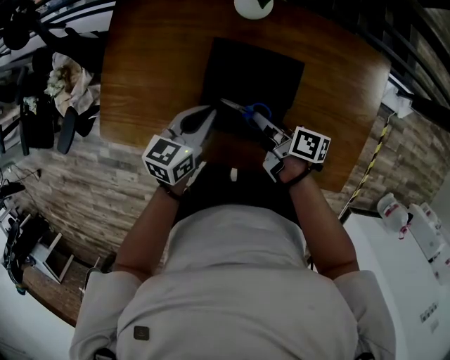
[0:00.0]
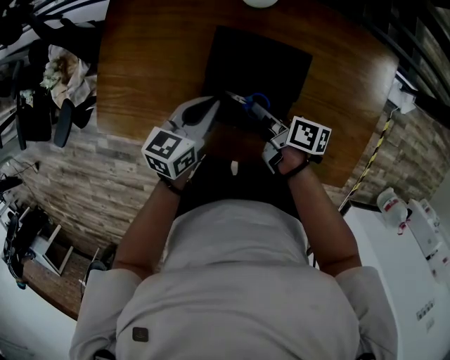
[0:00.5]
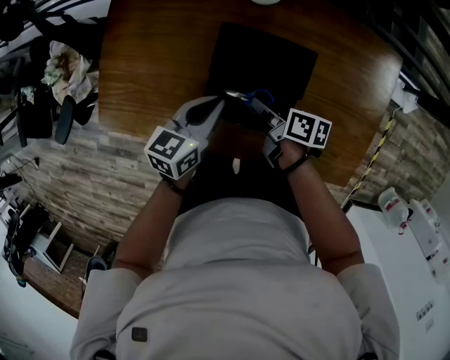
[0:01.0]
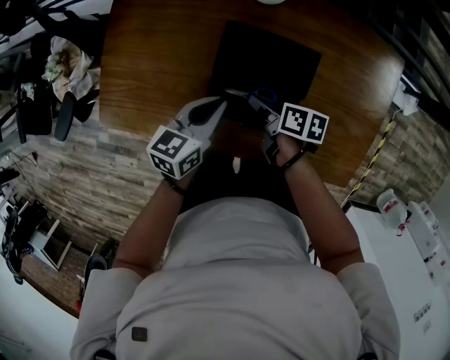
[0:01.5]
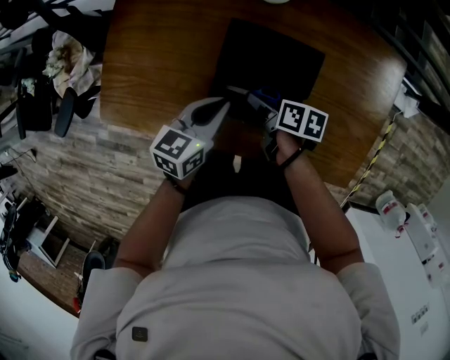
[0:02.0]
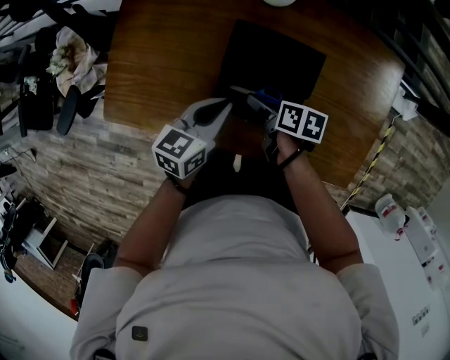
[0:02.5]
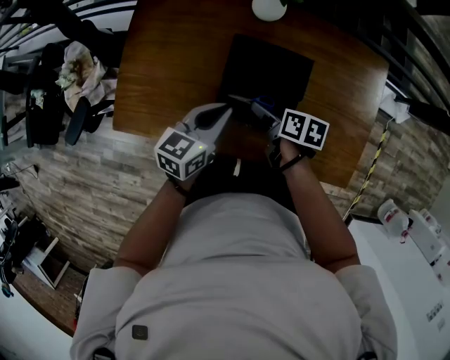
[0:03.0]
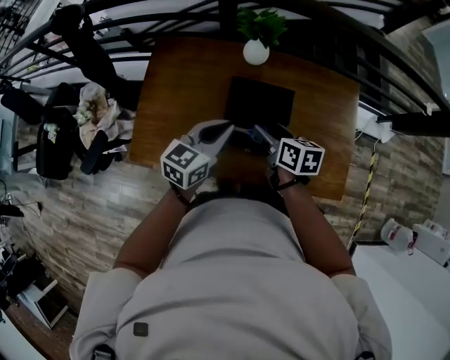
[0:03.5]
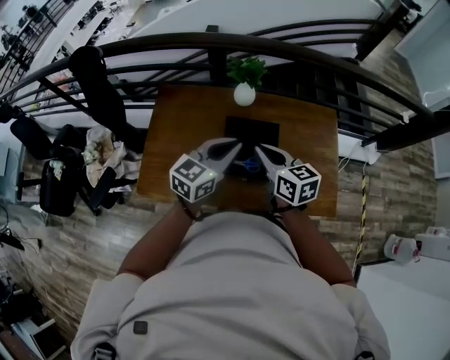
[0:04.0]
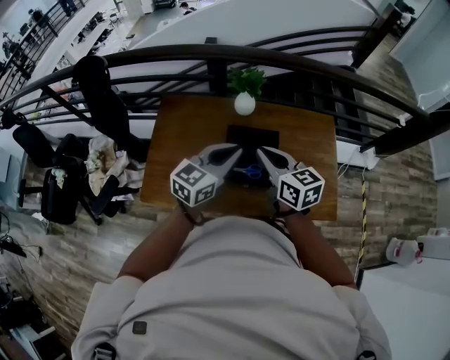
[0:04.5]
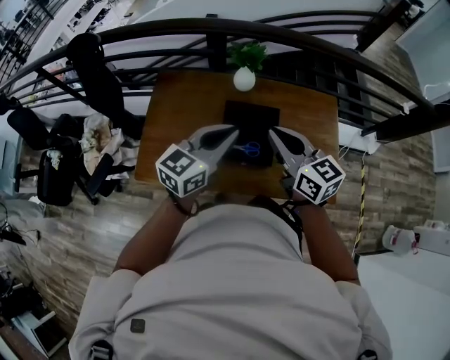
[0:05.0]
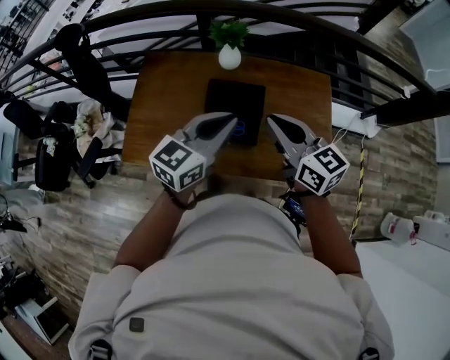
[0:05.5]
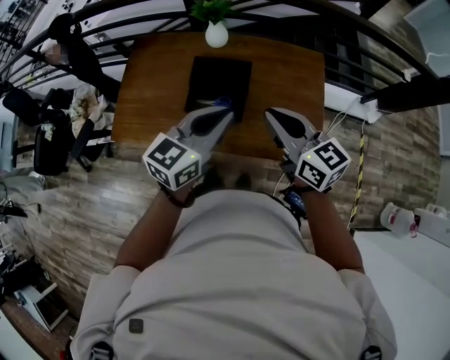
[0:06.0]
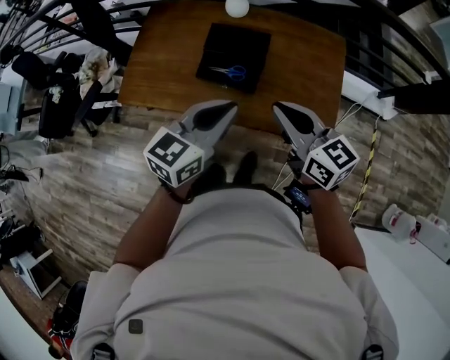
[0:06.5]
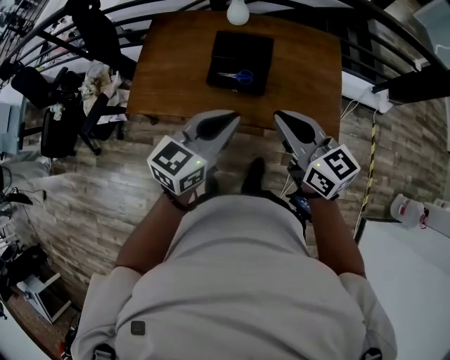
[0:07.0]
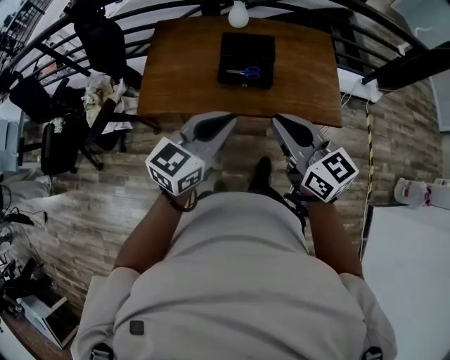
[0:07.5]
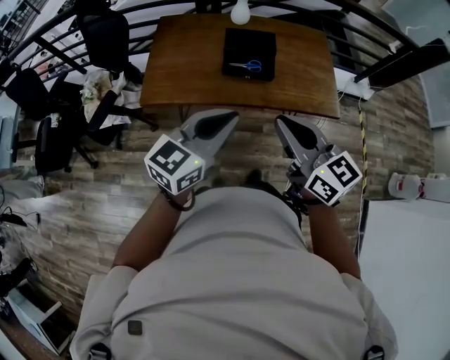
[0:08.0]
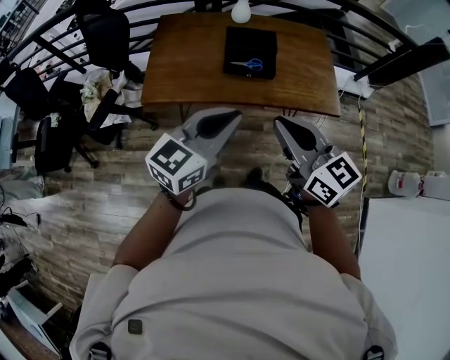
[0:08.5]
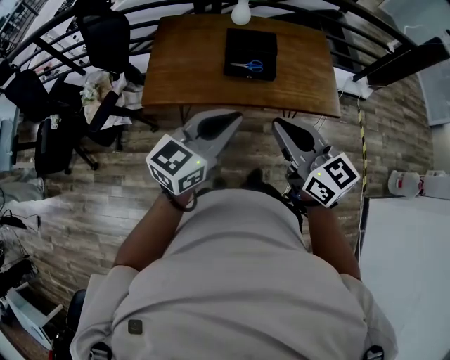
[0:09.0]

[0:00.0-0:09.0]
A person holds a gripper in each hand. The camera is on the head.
0:00.0 to 0:02.0: The right gripper is displaced downward by roughly 5 cm, turns by roughly 20 degrees, and opens up.
0:02.0 to 0:04.5: The two grippers go some 35 cm upward. The right gripper rotates approximately 60 degrees, and closes its fingers; the left gripper turns by about 30 degrees.
0:04.5 to 0:07.0: The grippers both shift backward and to the right by roughly 25 cm.
0:07.0 to 0:09.0: Both grippers travel together backward and to the left, about 25 cm.

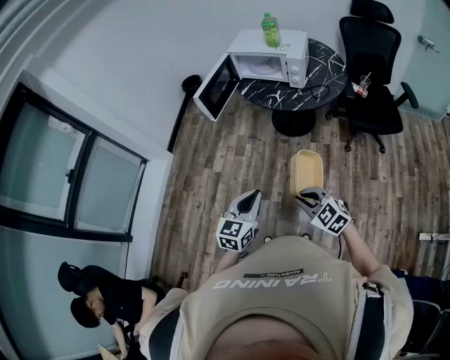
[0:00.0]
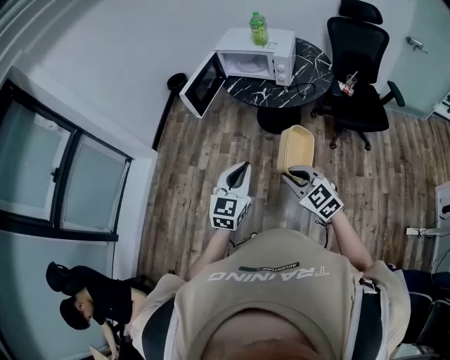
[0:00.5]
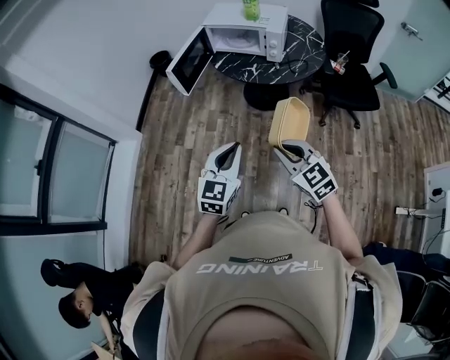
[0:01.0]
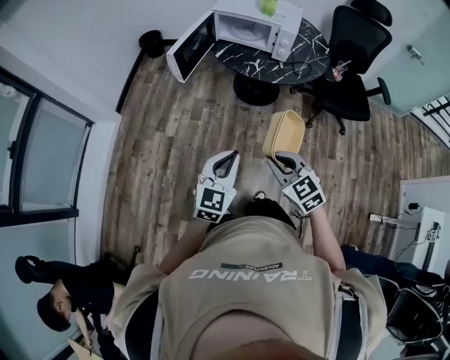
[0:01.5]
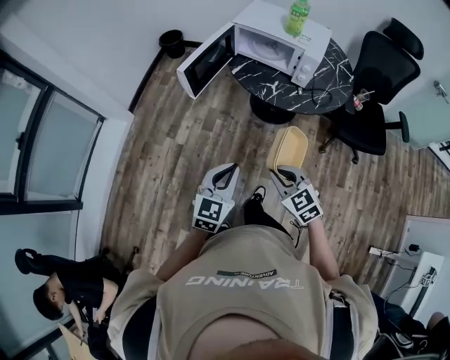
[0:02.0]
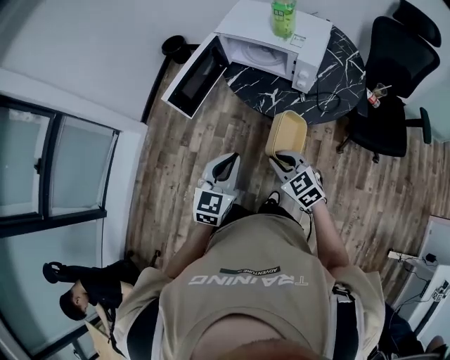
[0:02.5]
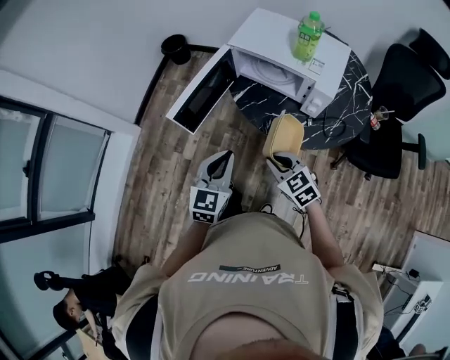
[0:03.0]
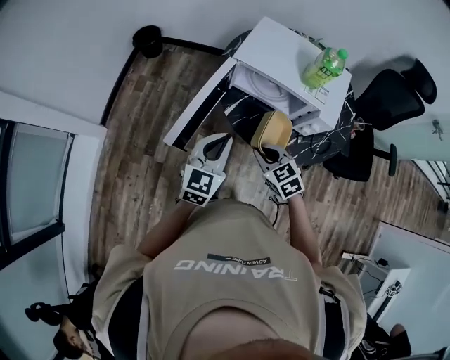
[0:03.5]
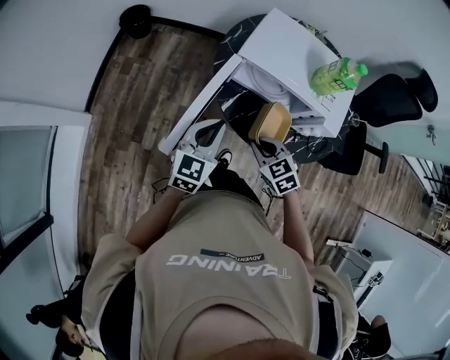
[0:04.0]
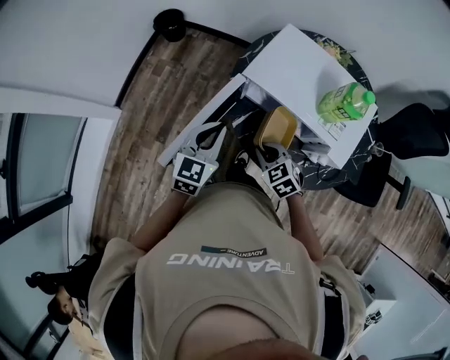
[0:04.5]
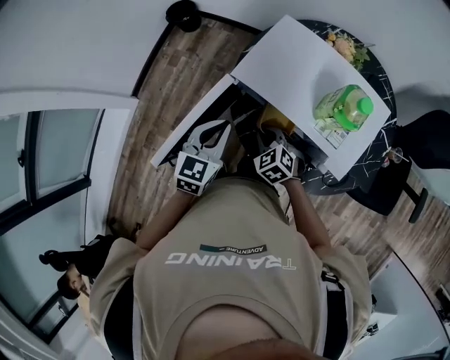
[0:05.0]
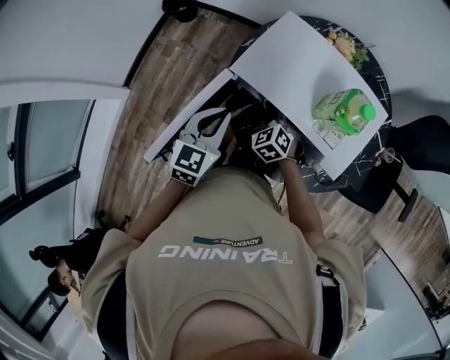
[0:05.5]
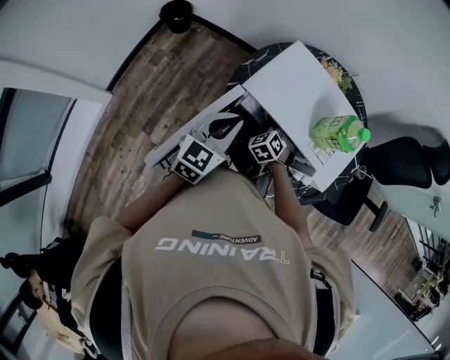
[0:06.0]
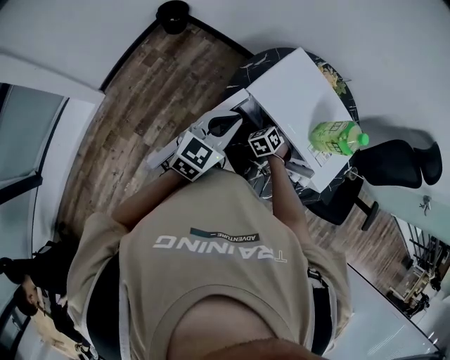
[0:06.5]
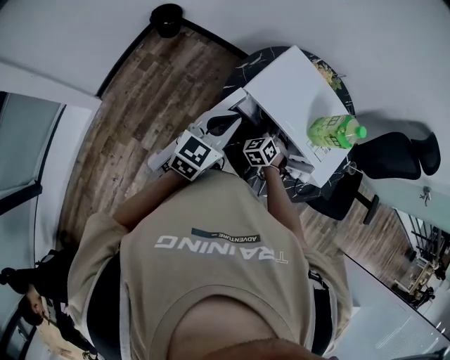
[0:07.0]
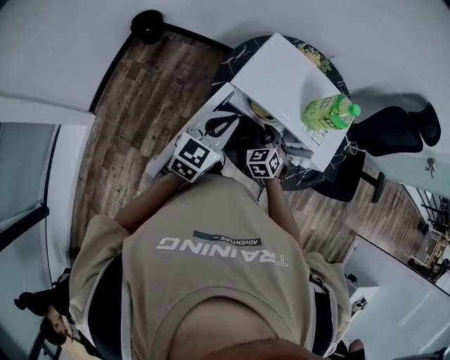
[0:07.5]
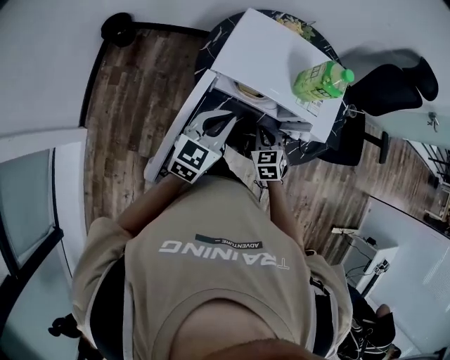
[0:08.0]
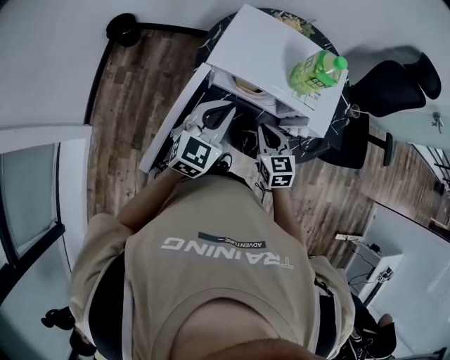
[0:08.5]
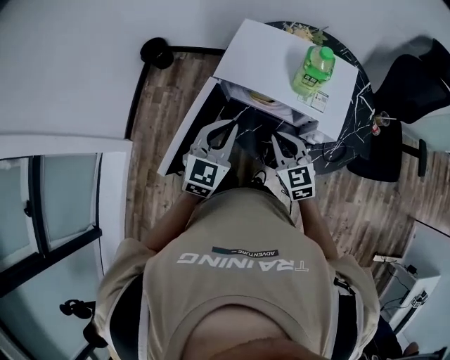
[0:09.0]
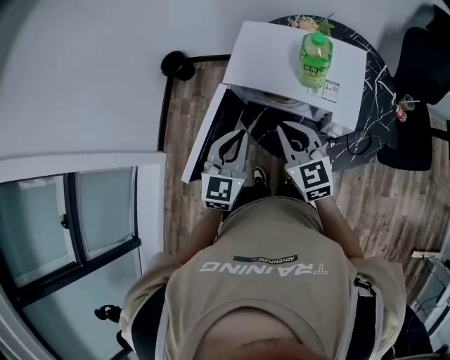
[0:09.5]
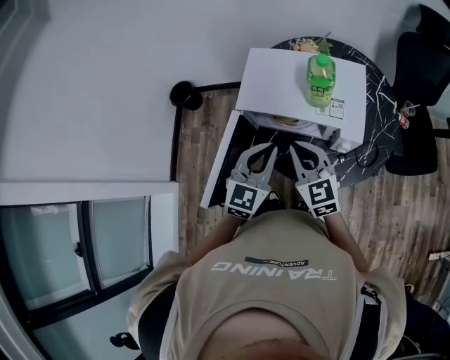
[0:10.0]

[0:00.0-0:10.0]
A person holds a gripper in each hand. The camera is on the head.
0:00.0 to 0:02.0: Both grippers move forward, approximately 15 cm.
0:02.0 to 0:04.0: The pair of grippers is taken forward, approximately 50 cm.
0:04.0 to 0:06.0: The right gripper is displaced forward and downward by about 20 cm, and rotates approximately 30 degrees, while the left gripper travels forward and to the right by approximately 10 cm.
0:06.0 to 0:08.0: The right gripper travels backward and to the right by about 15 cm, and changes its angle by some 30 degrees.
0:08.0 to 0:10.0: The right gripper goes about 20 cm upward, and tilts its fingers roughly 30 degrees upward. Meanwhile the left gripper travels to the right and upward by some 10 cm.

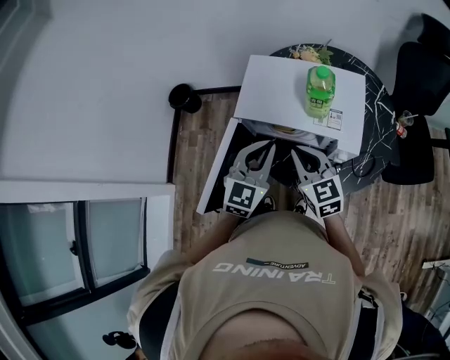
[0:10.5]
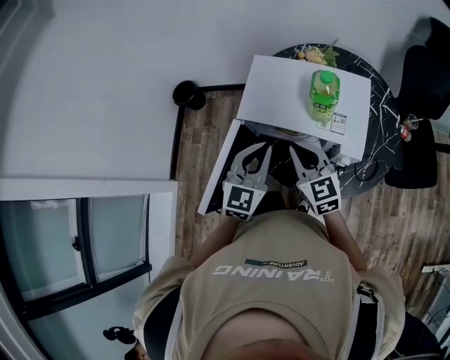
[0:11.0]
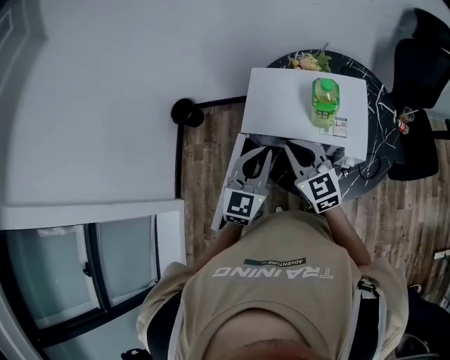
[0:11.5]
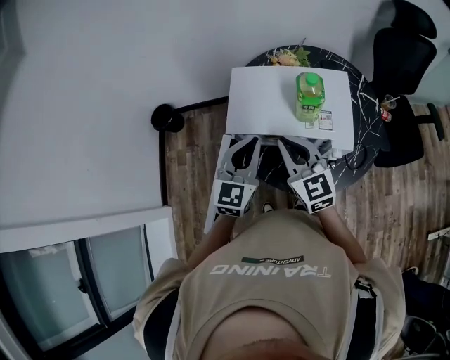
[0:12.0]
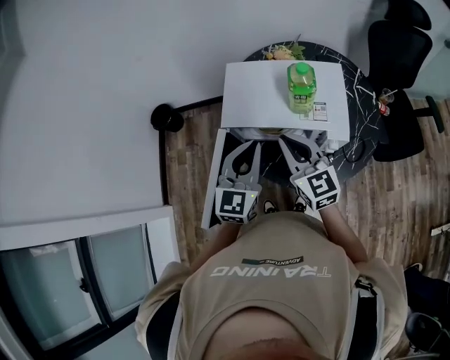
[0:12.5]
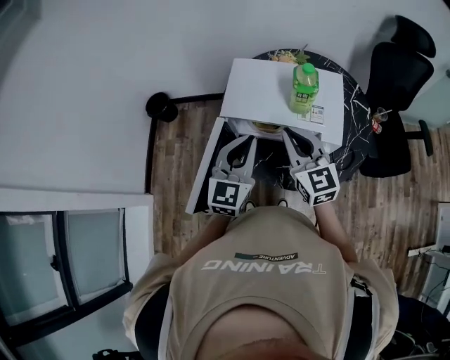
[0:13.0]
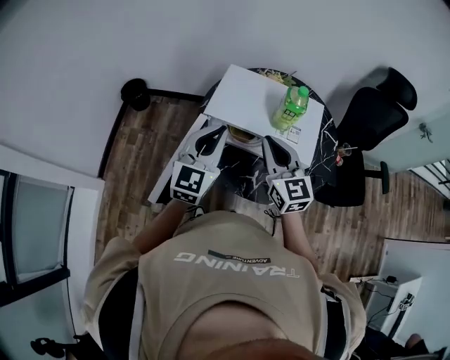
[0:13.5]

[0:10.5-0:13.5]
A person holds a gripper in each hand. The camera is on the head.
0:10.5 to 0:12.0: The left gripper shifts by roughly 5 cm, while the right gripper heads upward, covering about 5 cm.
0:12.0 to 0:13.5: The left gripper moves roughly 5 cm. Meanwhile the right gripper moves some 5 cm.

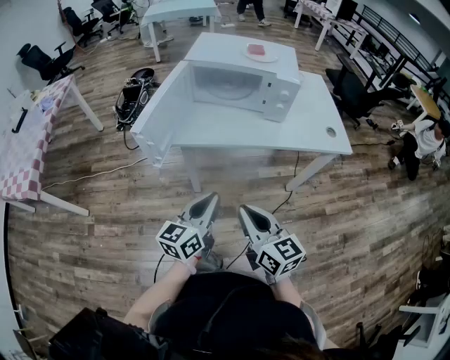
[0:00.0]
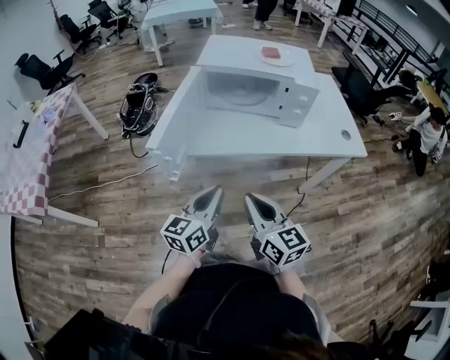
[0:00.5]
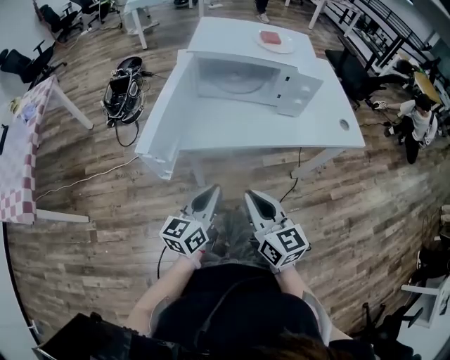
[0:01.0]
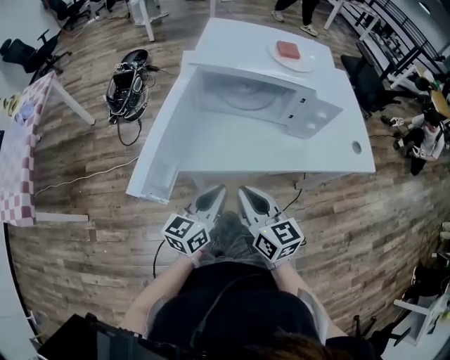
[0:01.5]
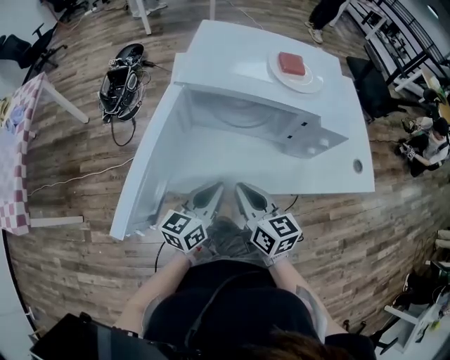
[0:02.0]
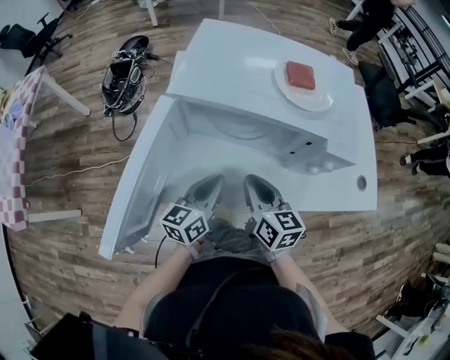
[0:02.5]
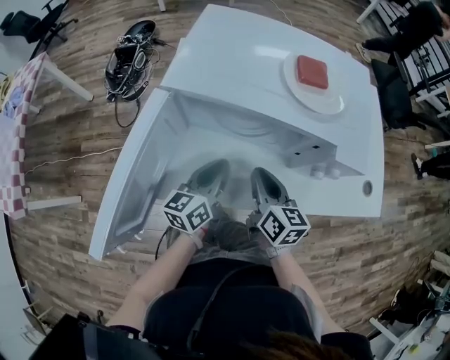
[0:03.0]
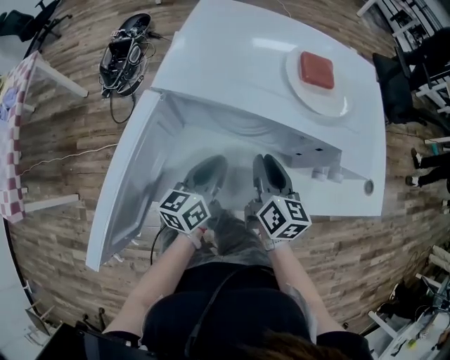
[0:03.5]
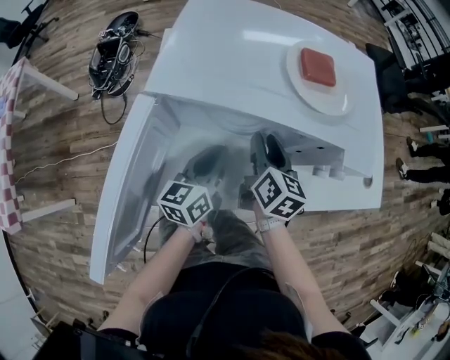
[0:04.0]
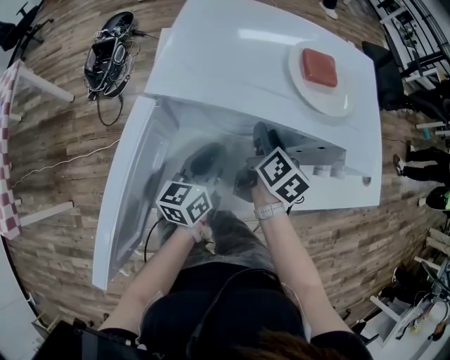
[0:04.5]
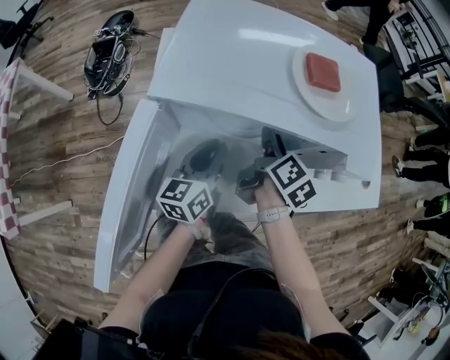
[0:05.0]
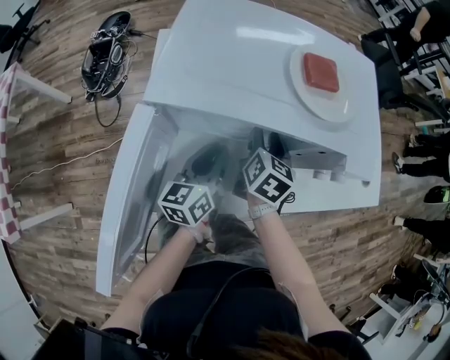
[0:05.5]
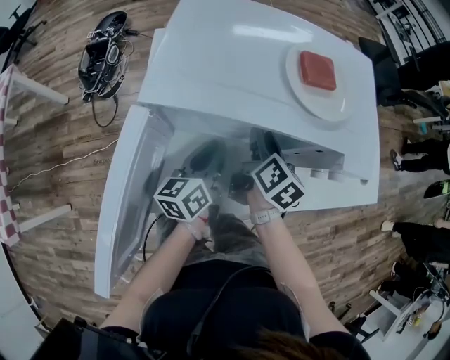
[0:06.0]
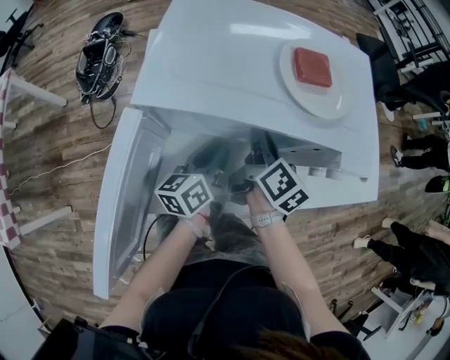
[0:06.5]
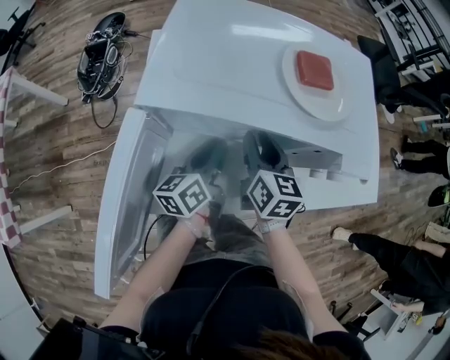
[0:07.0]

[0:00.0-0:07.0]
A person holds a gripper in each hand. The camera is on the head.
0:00.0 to 0:02.0: The right gripper ends up some 30 cm from where it was.
0:02.0 to 0:03.5: The right gripper shifts by some 15 cm.
0:03.5 to 0:05.0: The right gripper shifts by approximately 10 cm, changes its angle by about 30 degrees, and opens.
0:05.0 to 0:07.0: The right gripper rotates approximately 40 degrees.
